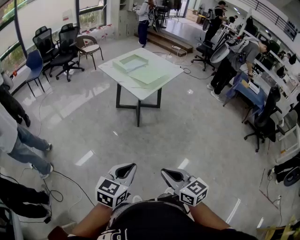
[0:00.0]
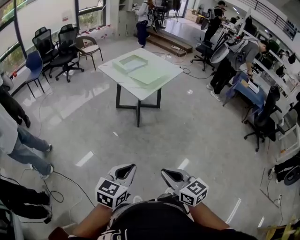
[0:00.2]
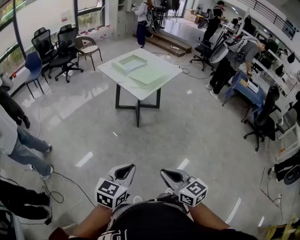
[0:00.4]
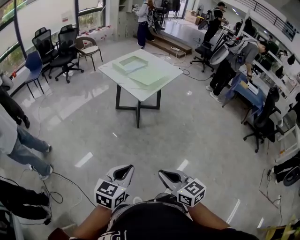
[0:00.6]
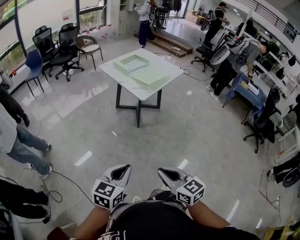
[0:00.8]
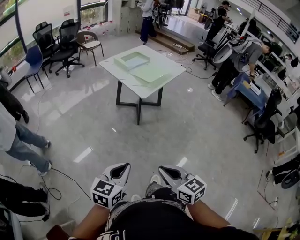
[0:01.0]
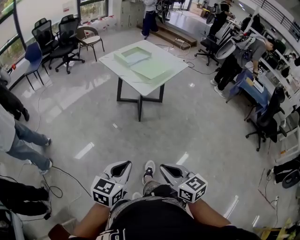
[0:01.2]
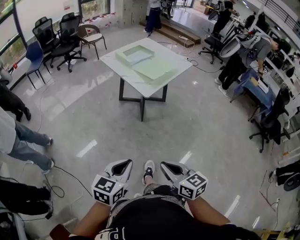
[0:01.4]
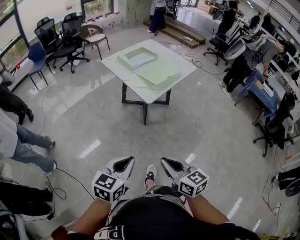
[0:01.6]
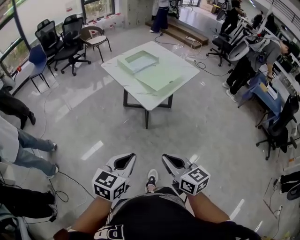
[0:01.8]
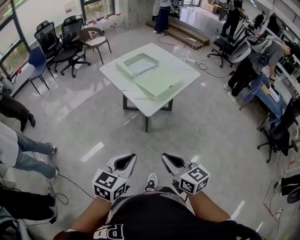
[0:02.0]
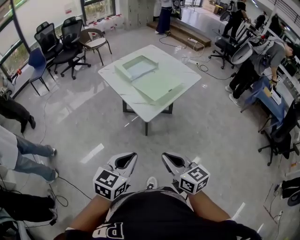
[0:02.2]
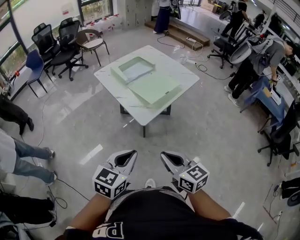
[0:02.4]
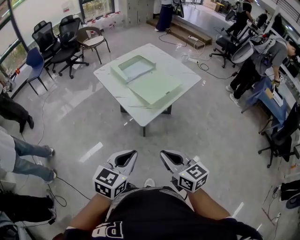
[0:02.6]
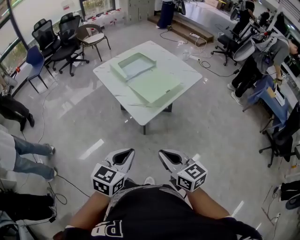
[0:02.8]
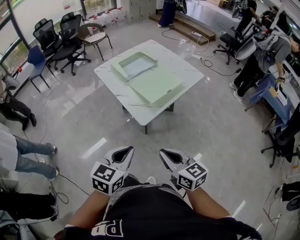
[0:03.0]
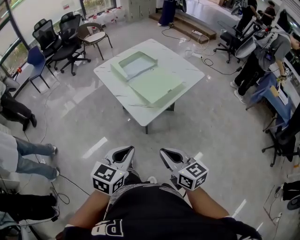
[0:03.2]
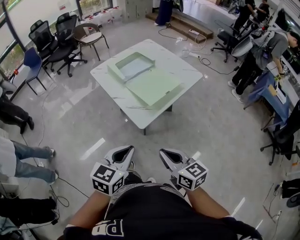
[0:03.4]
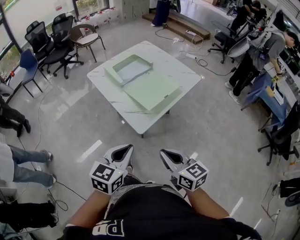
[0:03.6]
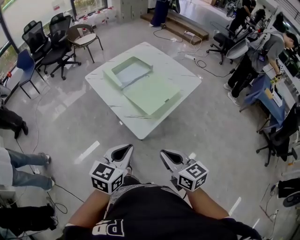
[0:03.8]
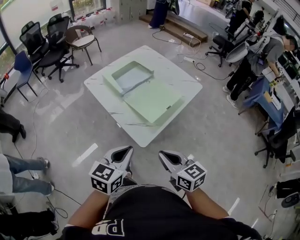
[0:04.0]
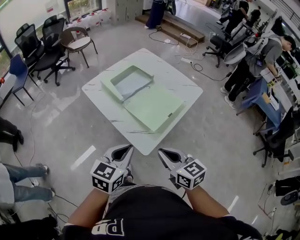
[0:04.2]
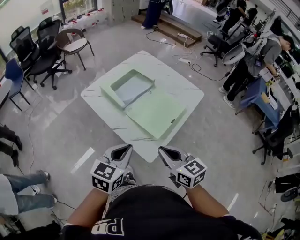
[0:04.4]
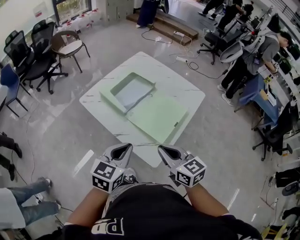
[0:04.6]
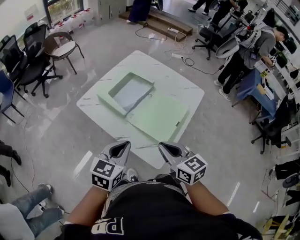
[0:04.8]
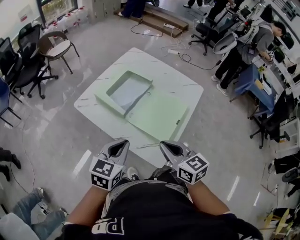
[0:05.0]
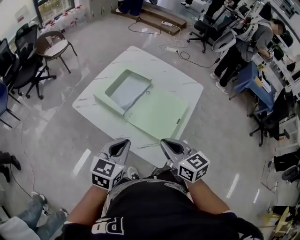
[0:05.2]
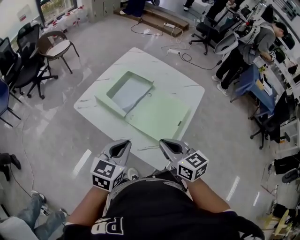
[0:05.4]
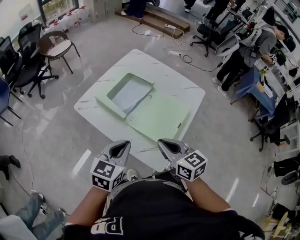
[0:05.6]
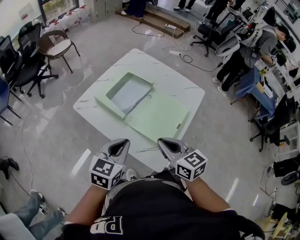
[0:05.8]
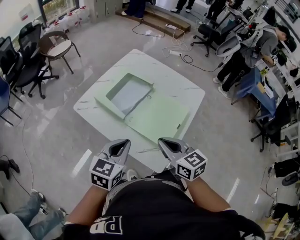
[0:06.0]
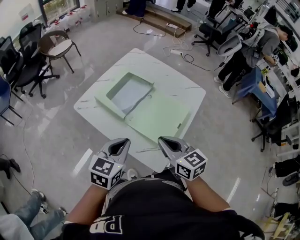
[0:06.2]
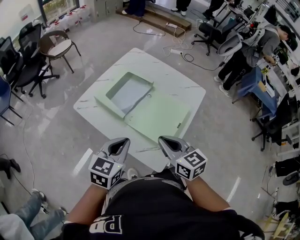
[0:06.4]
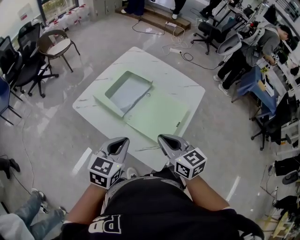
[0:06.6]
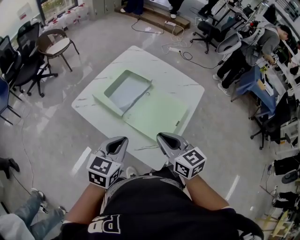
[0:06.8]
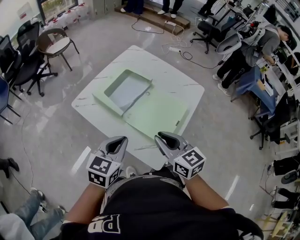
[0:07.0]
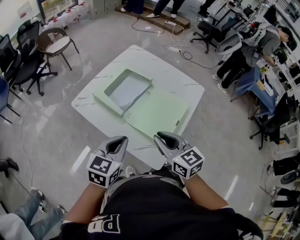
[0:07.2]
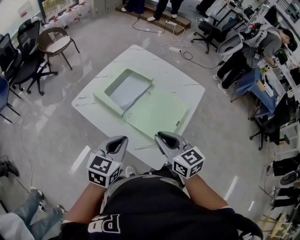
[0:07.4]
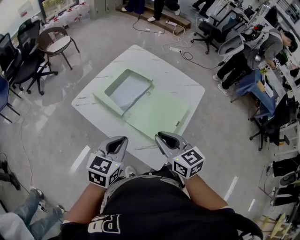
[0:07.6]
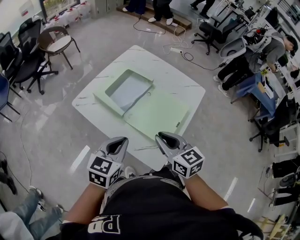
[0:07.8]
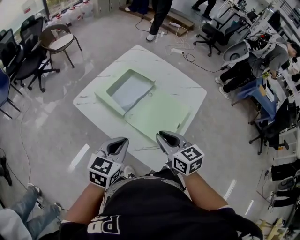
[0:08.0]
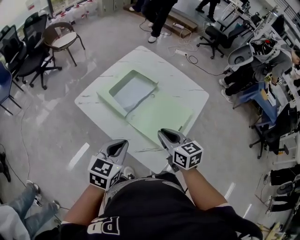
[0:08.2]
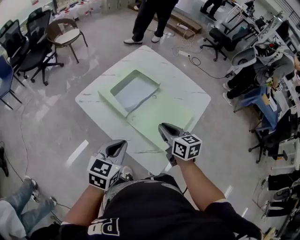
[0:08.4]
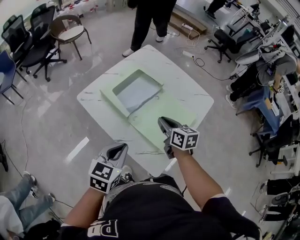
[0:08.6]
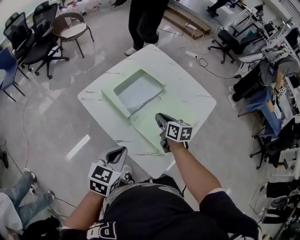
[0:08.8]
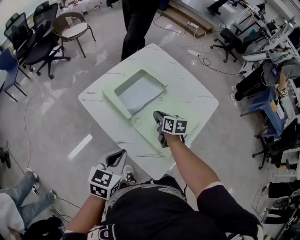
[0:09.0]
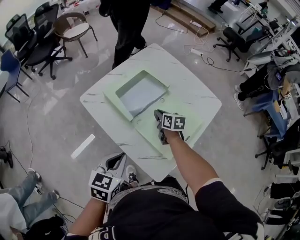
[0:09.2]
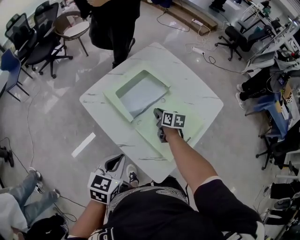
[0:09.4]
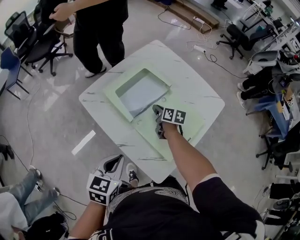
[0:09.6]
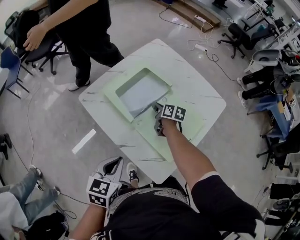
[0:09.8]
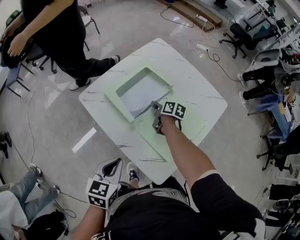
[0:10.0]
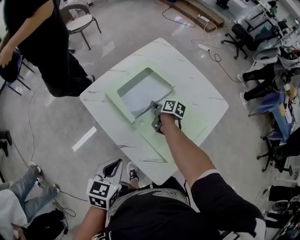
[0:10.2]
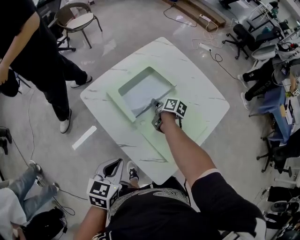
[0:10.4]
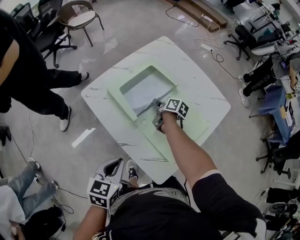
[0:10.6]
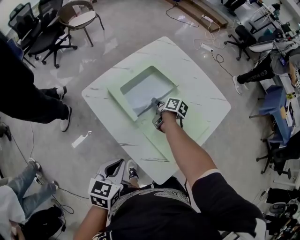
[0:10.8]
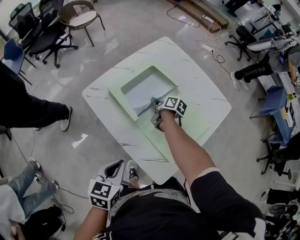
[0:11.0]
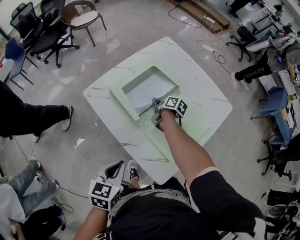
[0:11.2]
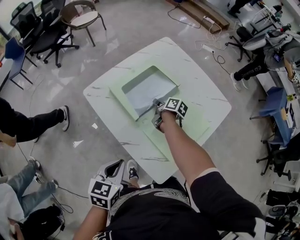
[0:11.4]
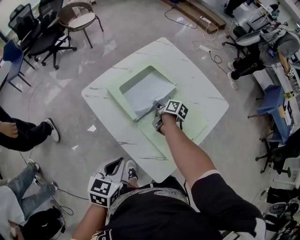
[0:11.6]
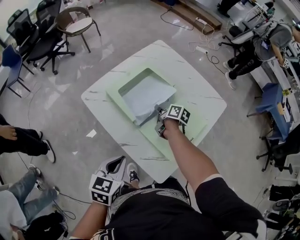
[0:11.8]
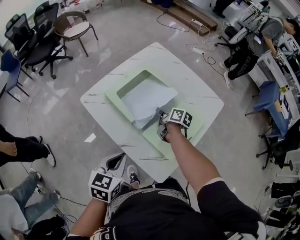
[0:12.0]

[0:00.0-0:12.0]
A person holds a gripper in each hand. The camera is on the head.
0:00.0 to 0:01.6: Both grippers move forward, approximately 15 cm.
0:01.6 to 0:03.0: Both grippers move forward, approximately 25 cm.
0:03.0 to 0:04.4: The two grippers go about 25 cm forward.
0:04.4 to 0:06.0: The left gripper travels forward and to the left by some 15 cm. The right gripper travels forward by roughly 10 cm.
0:06.0 to 0:07.6: Both grippers stay about where they are.
0:07.6 to 0:09.0: The right gripper is displaced forward and downward by some 25 cm, and changes its angle by some 30 degrees.
0:09.0 to 0:10.4: The right gripper travels forward and downward by about 10 cm, and turns by some 30 degrees.
0:10.4 to 0:12.0: The right gripper is displaced backward by approximately 5 cm.

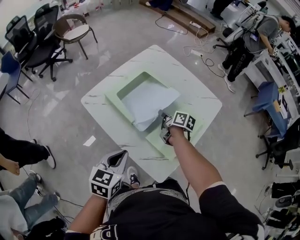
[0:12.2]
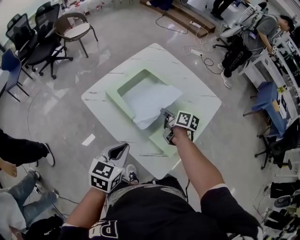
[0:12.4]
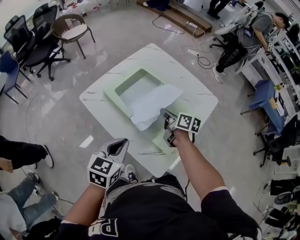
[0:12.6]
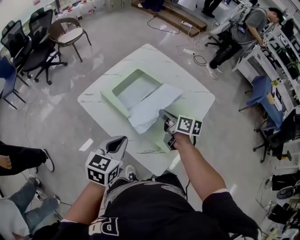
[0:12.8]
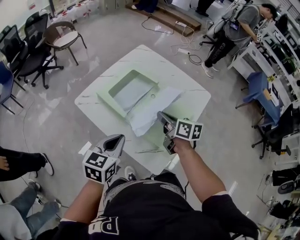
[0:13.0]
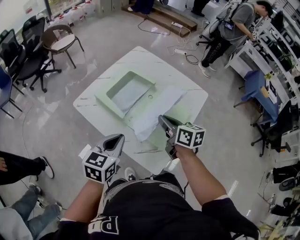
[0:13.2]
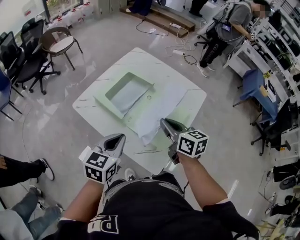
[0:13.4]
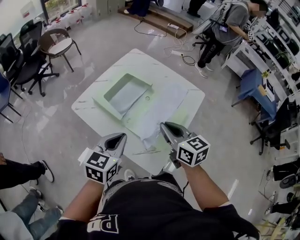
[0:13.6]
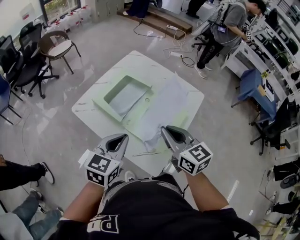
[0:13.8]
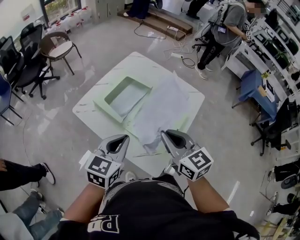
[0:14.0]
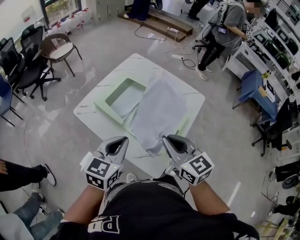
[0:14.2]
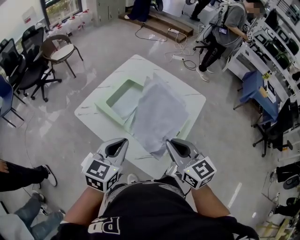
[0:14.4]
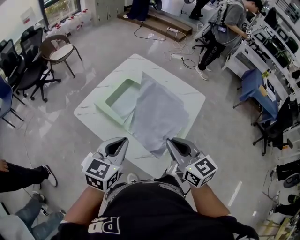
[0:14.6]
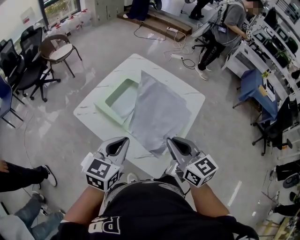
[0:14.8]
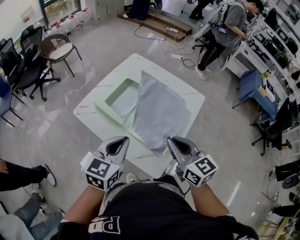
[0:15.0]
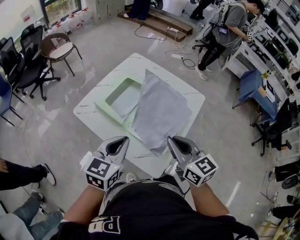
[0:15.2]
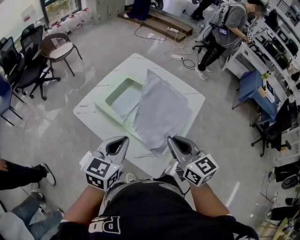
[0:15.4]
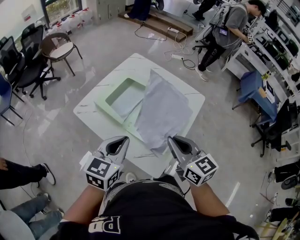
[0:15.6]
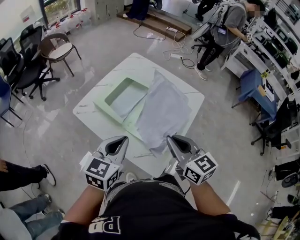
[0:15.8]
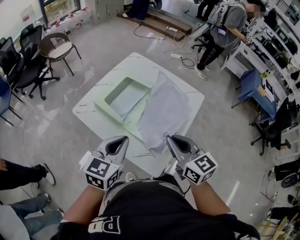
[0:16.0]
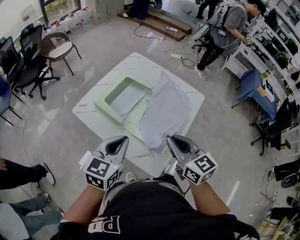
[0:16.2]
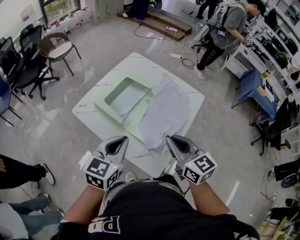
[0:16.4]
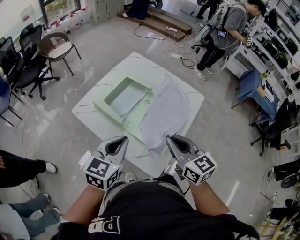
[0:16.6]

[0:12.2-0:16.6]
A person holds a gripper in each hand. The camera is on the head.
0:12.2 to 0:13.6: The left gripper moves upward, some 5 cm. Meanwhile the right gripper shifts about 25 cm upward and backward, and rolls counterclockwise, seen from behind, by roughly 40 degrees.
0:13.6 to 0:15.2: The right gripper moves approximately 5 cm.
0:15.2 to 0:16.6: Both grippers stay put.

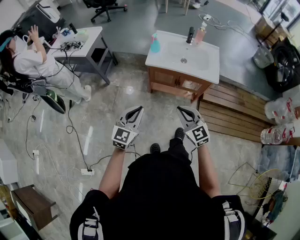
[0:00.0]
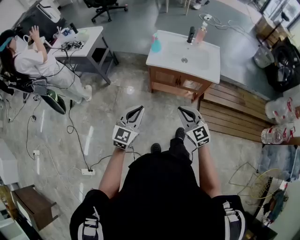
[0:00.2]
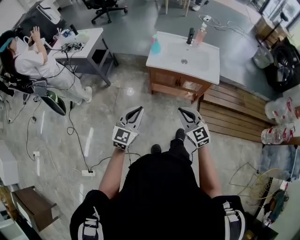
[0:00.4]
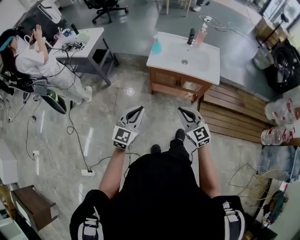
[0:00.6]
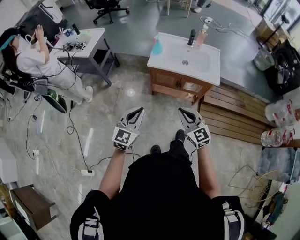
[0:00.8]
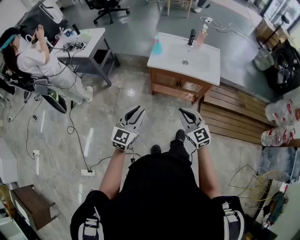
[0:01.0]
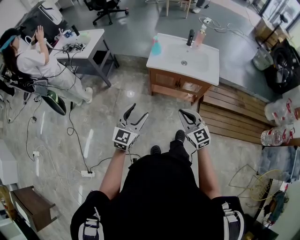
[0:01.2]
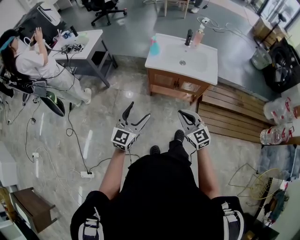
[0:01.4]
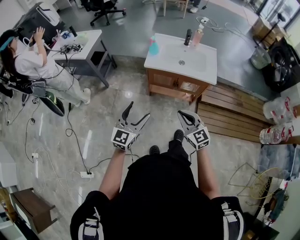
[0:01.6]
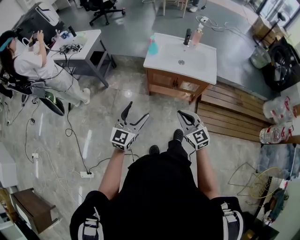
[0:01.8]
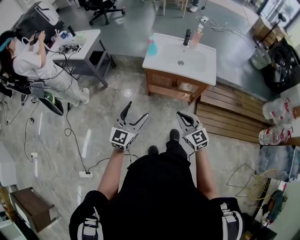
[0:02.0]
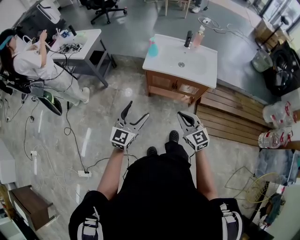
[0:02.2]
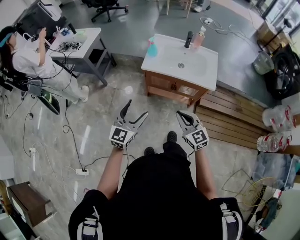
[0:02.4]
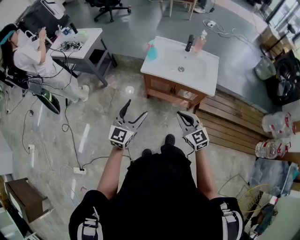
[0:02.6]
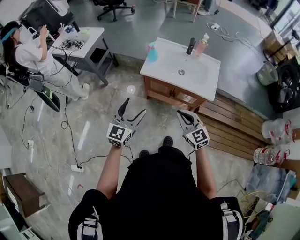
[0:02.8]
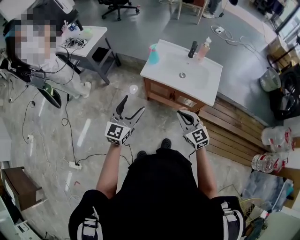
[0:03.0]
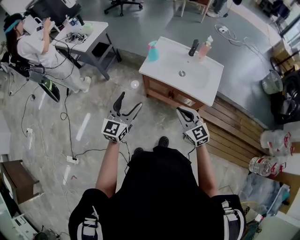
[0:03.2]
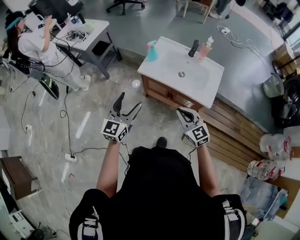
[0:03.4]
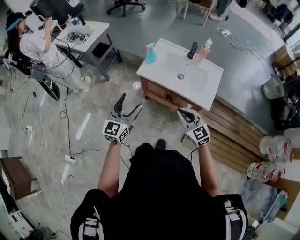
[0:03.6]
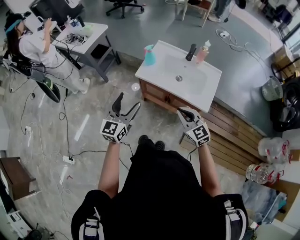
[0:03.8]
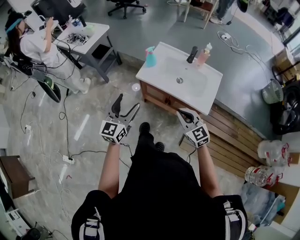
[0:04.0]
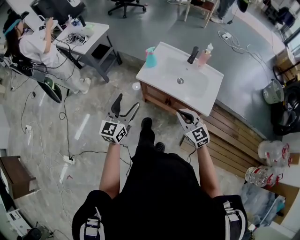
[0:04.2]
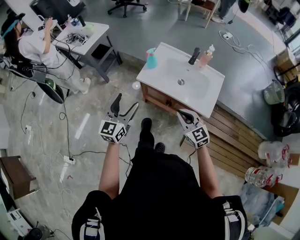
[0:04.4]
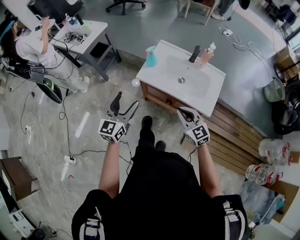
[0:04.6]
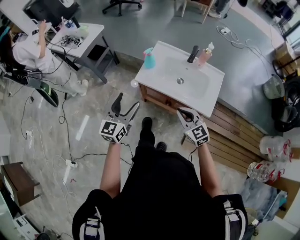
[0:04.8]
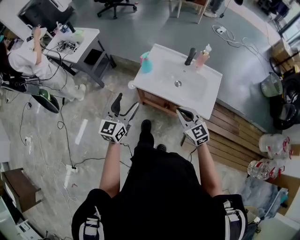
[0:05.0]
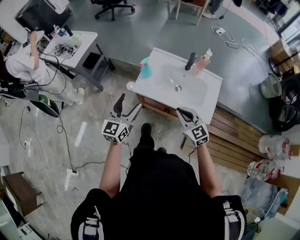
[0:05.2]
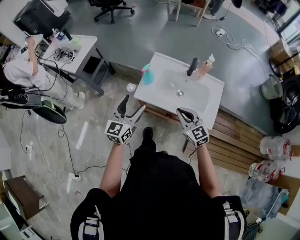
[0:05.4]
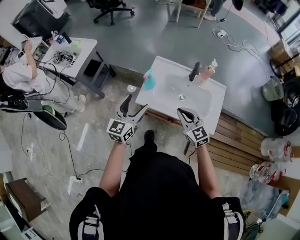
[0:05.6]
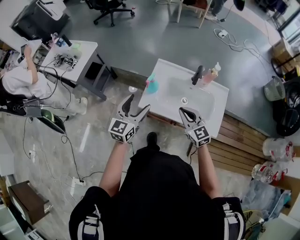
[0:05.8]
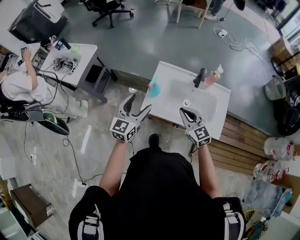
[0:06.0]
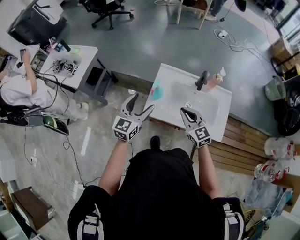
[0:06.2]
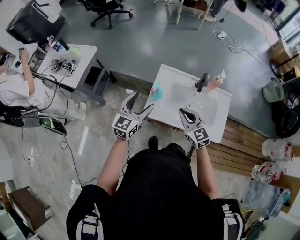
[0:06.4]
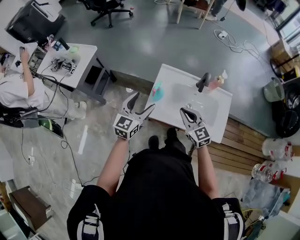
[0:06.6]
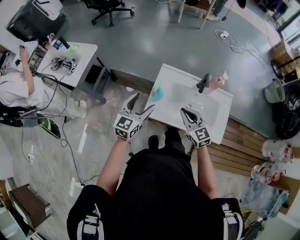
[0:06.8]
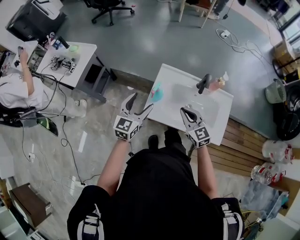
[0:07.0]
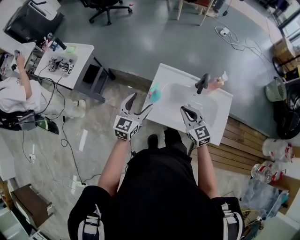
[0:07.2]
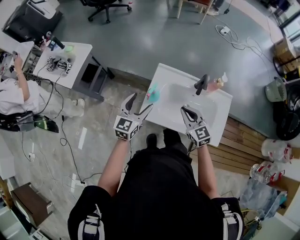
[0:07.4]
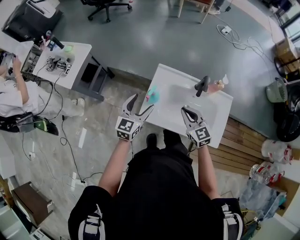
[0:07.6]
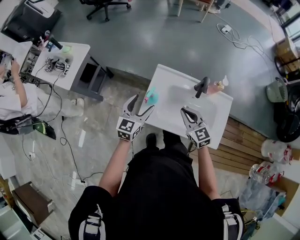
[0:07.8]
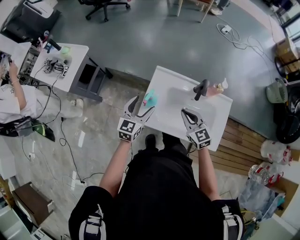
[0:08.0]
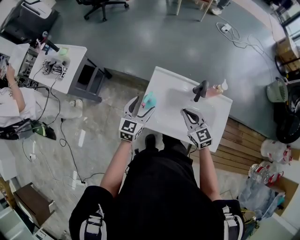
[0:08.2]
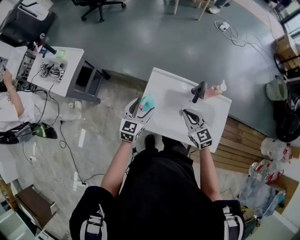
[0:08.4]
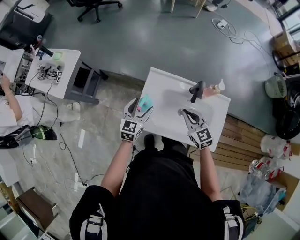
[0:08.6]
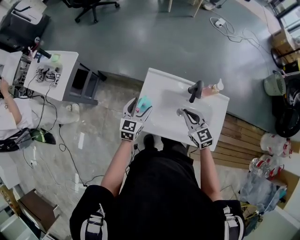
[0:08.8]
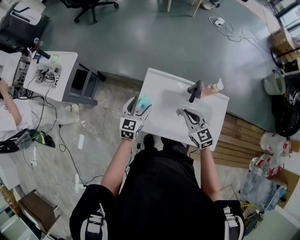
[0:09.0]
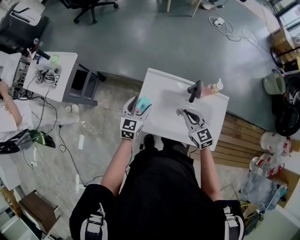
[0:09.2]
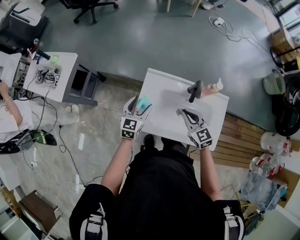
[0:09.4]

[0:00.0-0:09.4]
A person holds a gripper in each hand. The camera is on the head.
0:00.0 to 0:01.6: The left gripper opens up.
0:01.6 to 0:03.2: Both grippers move forward and to the right, some 20 cm.
0:03.2 to 0:04.8: Both grippers move forward, some 10 cm.
0:04.8 to 0:06.2: Both grippers move forward, some 25 cm.
0:06.2 to 0:07.8: The right gripper moves forward, about 10 cm. The left gripper is displaced forward and downward by roughly 10 cm.
0:07.8 to 0:09.4: The right gripper moves to the right, roughly 5 cm. Meanwhile the left gripper heads forward and downward, covering approximately 10 cm.
